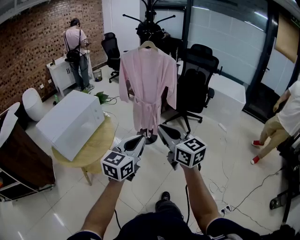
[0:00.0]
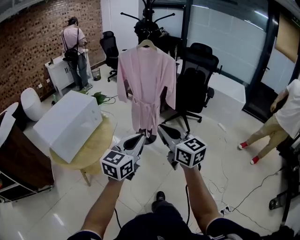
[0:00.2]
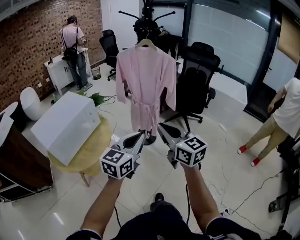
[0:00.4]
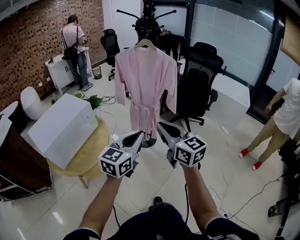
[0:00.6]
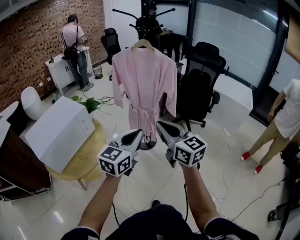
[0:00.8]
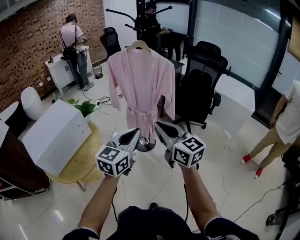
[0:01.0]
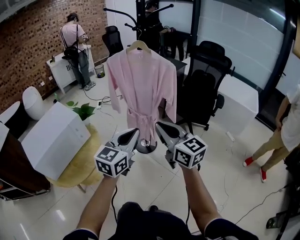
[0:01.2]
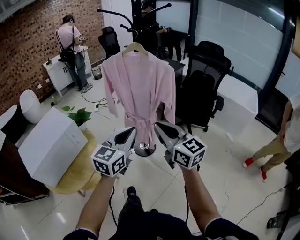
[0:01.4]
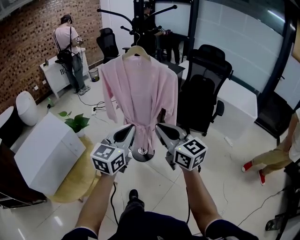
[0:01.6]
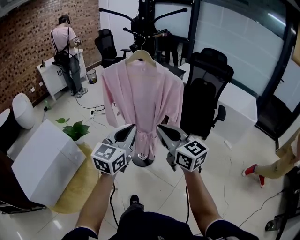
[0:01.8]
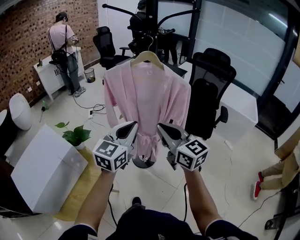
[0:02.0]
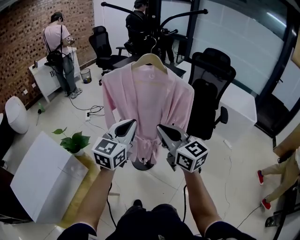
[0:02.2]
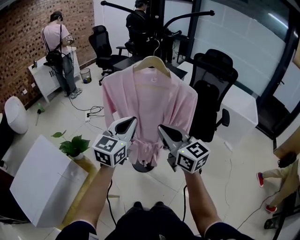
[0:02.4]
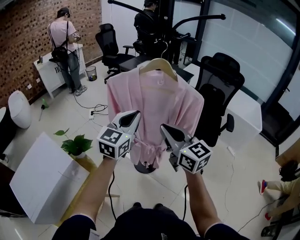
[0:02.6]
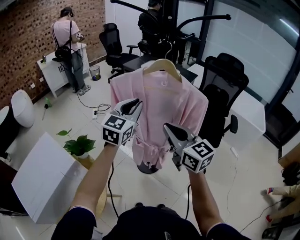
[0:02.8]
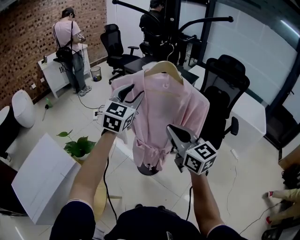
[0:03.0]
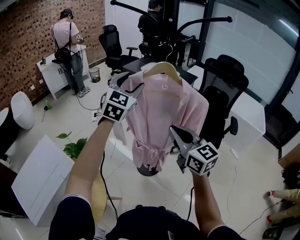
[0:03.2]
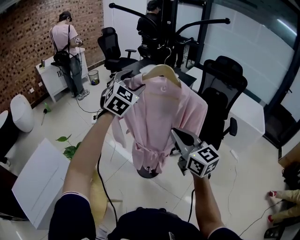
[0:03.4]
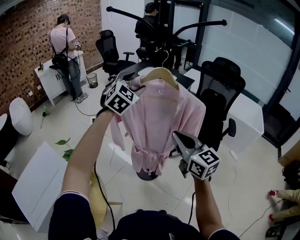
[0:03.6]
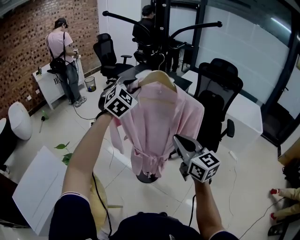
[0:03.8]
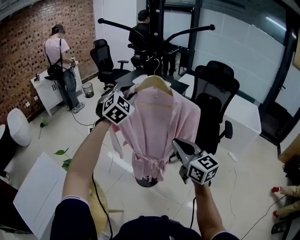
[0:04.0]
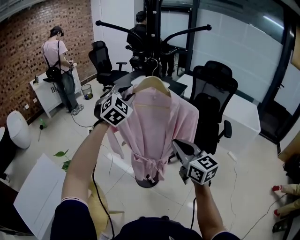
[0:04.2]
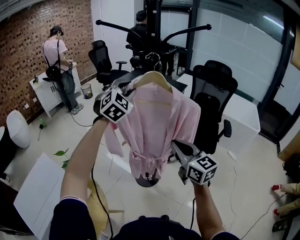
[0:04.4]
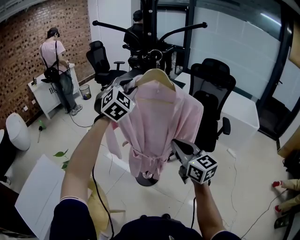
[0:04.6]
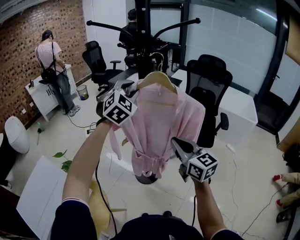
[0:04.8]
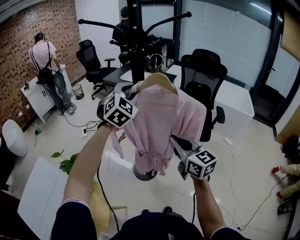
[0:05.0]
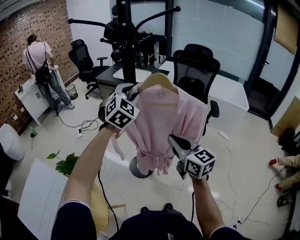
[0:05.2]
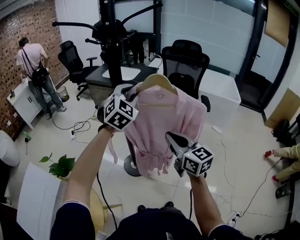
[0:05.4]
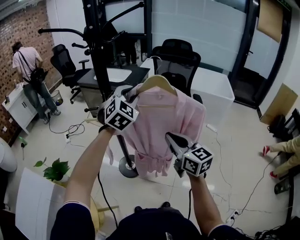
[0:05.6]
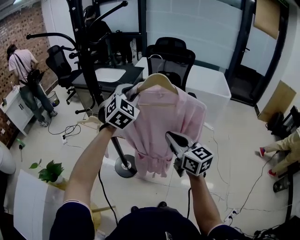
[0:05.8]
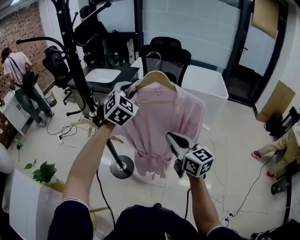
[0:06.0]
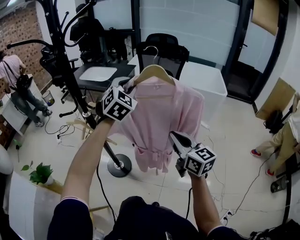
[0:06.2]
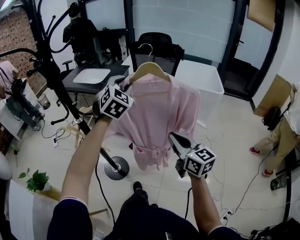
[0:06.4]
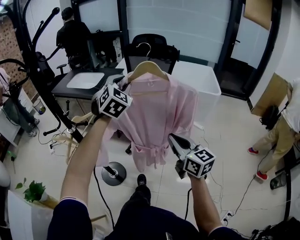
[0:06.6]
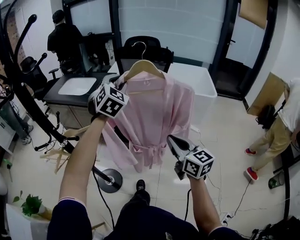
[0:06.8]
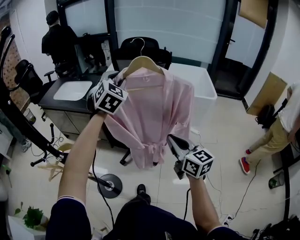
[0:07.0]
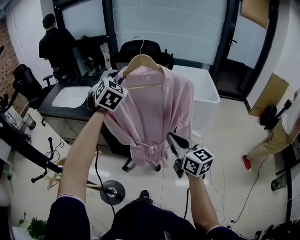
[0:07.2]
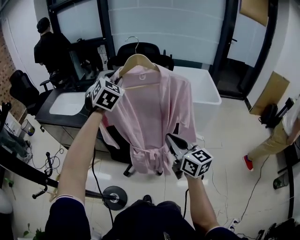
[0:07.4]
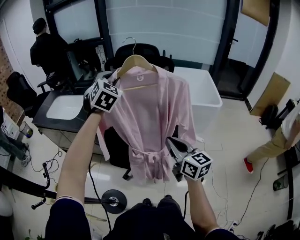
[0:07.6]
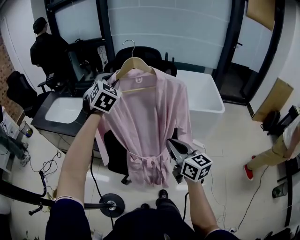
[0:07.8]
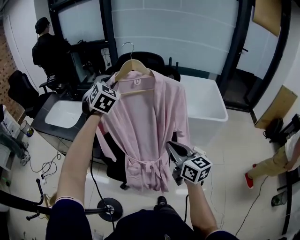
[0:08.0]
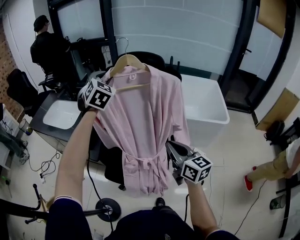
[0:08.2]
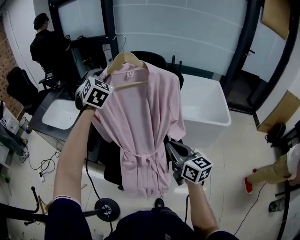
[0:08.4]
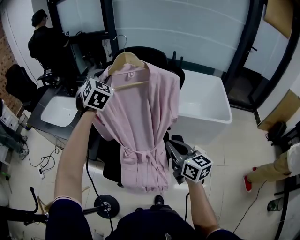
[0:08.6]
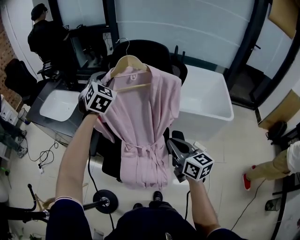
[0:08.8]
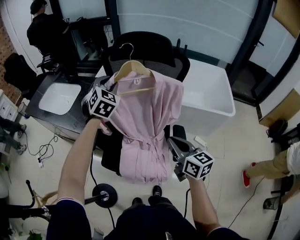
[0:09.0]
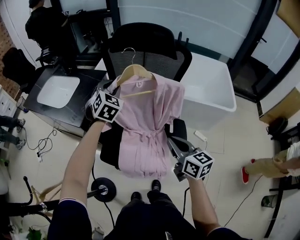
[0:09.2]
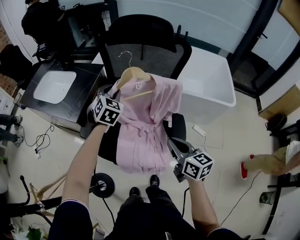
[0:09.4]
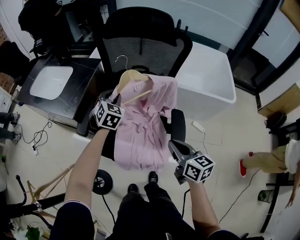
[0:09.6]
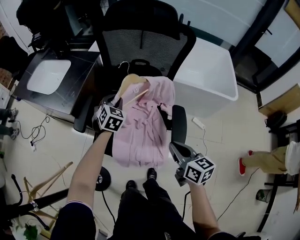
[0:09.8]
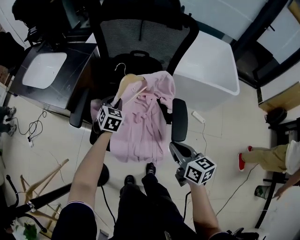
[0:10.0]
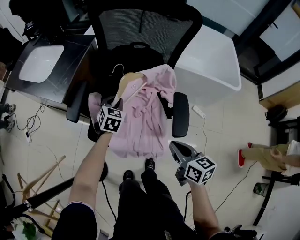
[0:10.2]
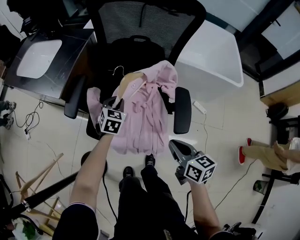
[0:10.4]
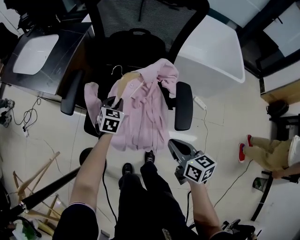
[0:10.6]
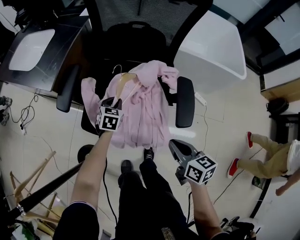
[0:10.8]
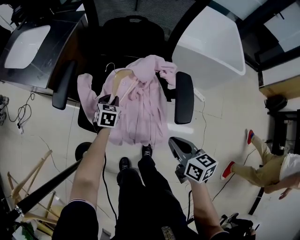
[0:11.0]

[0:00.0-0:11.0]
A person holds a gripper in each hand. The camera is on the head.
0:00.0 to 0:01.6: Both grippers travel together forward, about 30 cm.
0:01.6 to 0:03.2: The left gripper goes some 35 cm forward, rotates approximately 30 degrees, and opens, while the right gripper travels forward by approximately 20 cm.
0:03.2 to 0:04.8: The left gripper moves to the right, some 5 cm, rotates roughly 20 degrees, and closes up, while the right gripper moves roughly 5 cm.
0:04.8 to 0:06.2: Both grippers move to the right, roughly 25 cm.
0:06.2 to 0:07.8: Both grippers are carried forward, approximately 40 cm.
0:07.8 to 0:09.4: The right gripper shifts roughly 15 cm downward, forward and to the right. The left gripper heads downward, covering approximately 20 cm.
0:09.4 to 0:11.0: The left gripper moves downward, roughly 35 cm, and swivels approximately 30 degrees. Meanwhile the right gripper goes roughly 20 cm downward and backward.

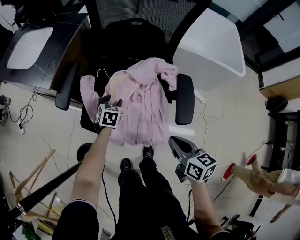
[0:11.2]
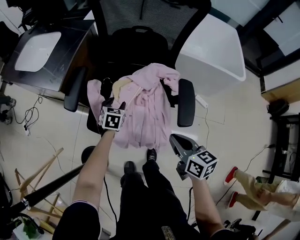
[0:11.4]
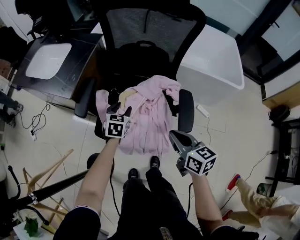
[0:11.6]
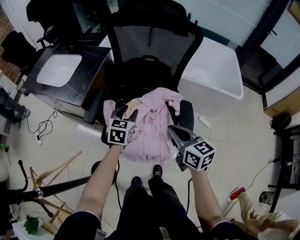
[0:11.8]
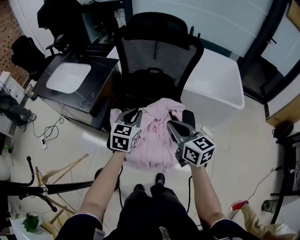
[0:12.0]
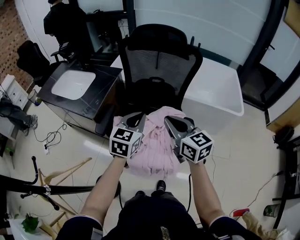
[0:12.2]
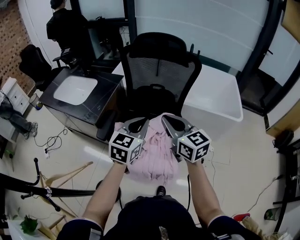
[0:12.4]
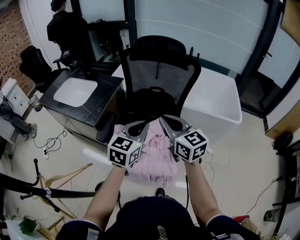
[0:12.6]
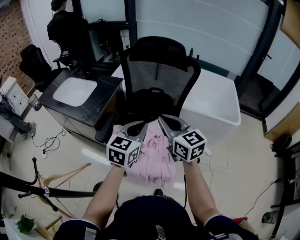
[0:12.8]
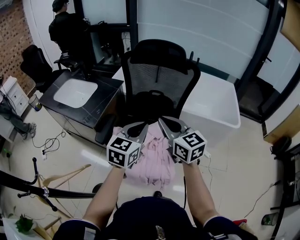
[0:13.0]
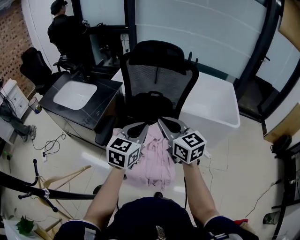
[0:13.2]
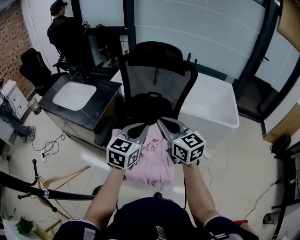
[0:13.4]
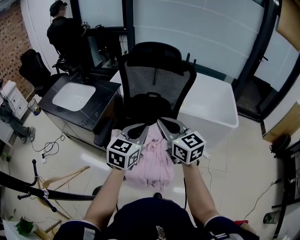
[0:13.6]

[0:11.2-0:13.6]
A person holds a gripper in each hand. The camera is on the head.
0:11.2 to 0:12.4: The left gripper shifts about 40 cm upward, points its fingers about 30 degrees further upward, and closes its fingers. Meanwhile the right gripper heads upward and forward, covering about 30 cm, and swivels some 40 degrees.
0:12.4 to 0:13.6: The grippers stay close to where they were, moving slightly.

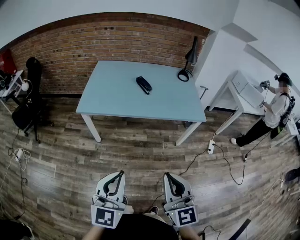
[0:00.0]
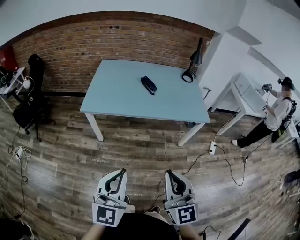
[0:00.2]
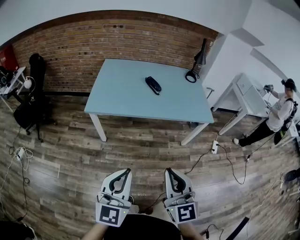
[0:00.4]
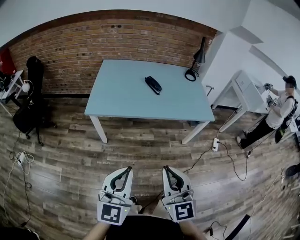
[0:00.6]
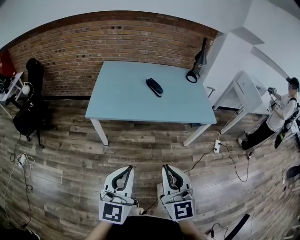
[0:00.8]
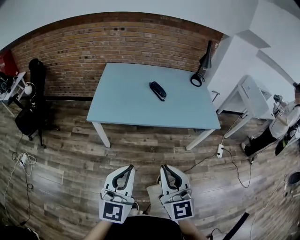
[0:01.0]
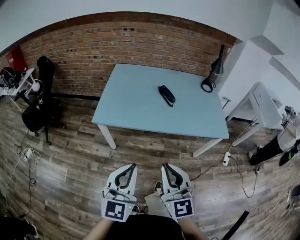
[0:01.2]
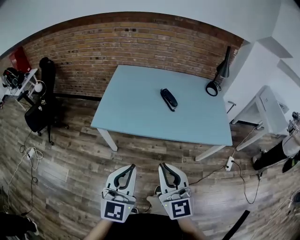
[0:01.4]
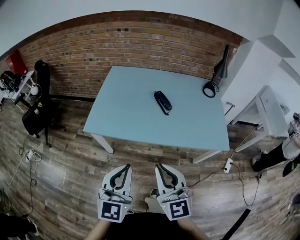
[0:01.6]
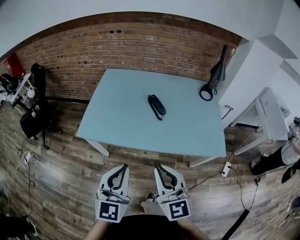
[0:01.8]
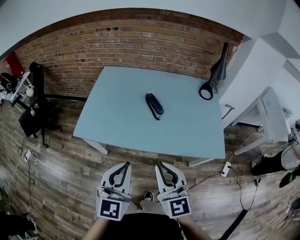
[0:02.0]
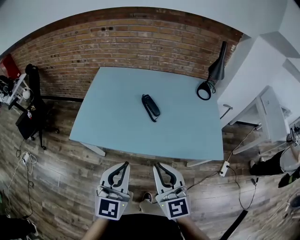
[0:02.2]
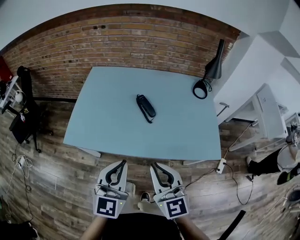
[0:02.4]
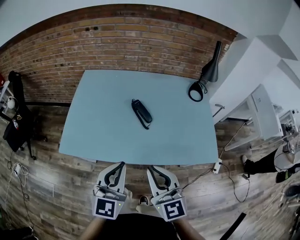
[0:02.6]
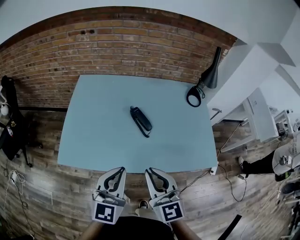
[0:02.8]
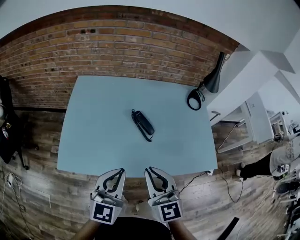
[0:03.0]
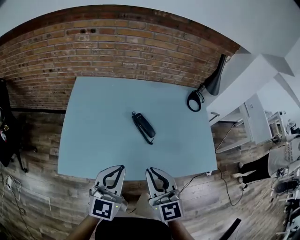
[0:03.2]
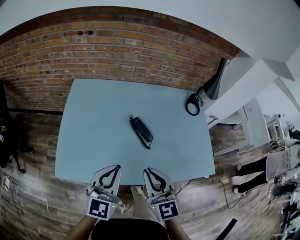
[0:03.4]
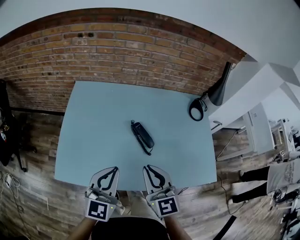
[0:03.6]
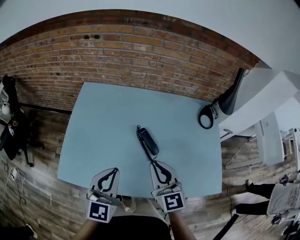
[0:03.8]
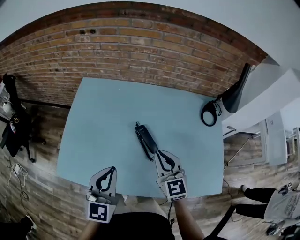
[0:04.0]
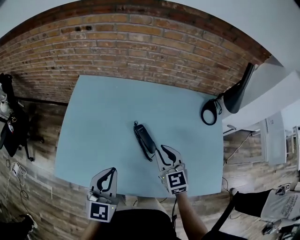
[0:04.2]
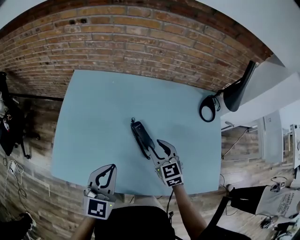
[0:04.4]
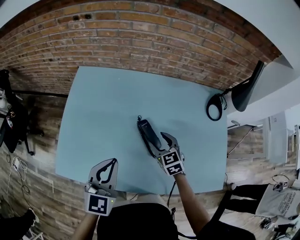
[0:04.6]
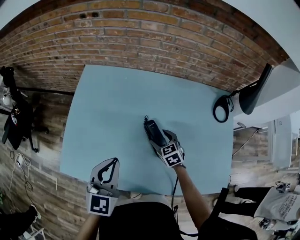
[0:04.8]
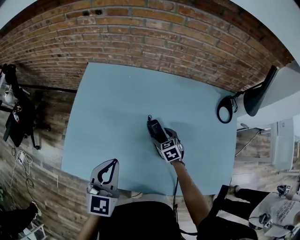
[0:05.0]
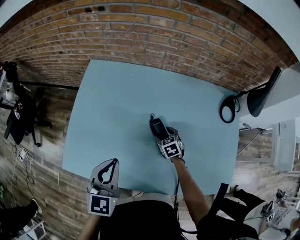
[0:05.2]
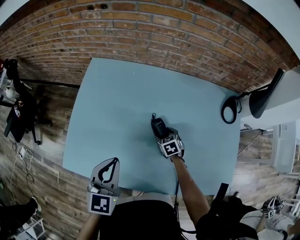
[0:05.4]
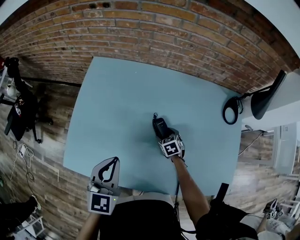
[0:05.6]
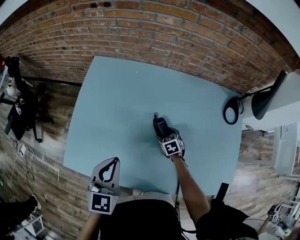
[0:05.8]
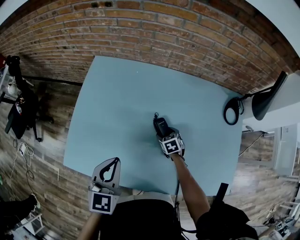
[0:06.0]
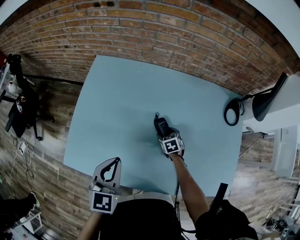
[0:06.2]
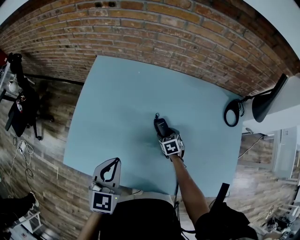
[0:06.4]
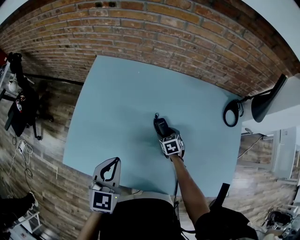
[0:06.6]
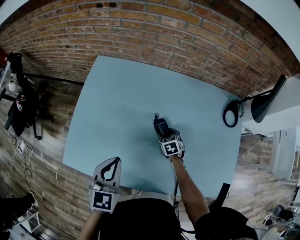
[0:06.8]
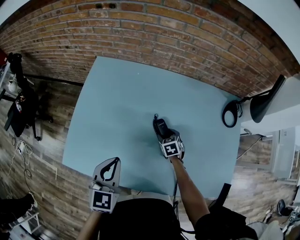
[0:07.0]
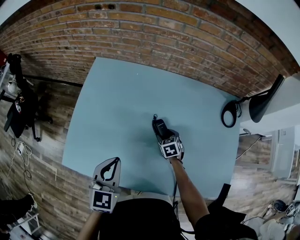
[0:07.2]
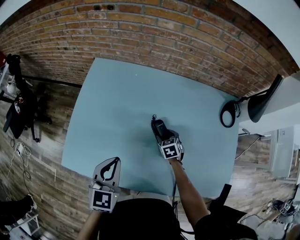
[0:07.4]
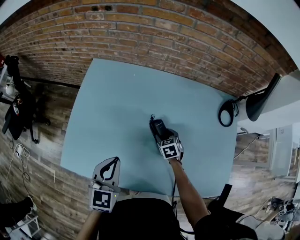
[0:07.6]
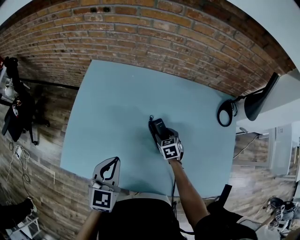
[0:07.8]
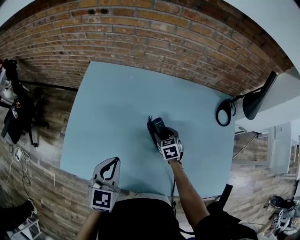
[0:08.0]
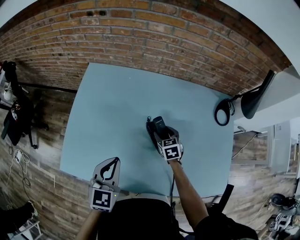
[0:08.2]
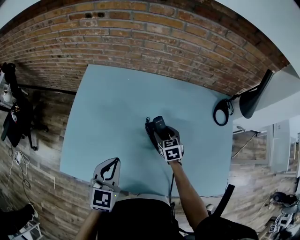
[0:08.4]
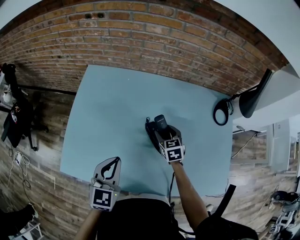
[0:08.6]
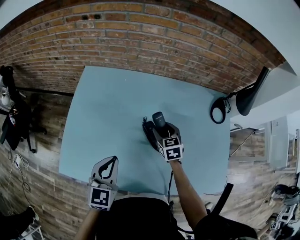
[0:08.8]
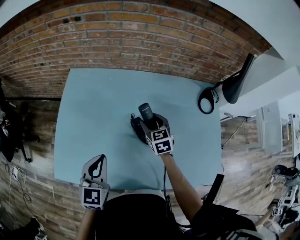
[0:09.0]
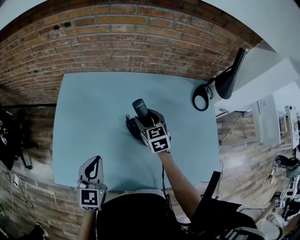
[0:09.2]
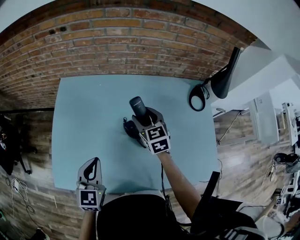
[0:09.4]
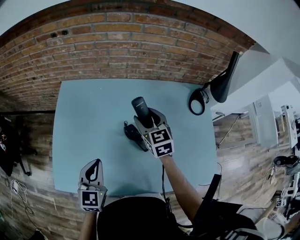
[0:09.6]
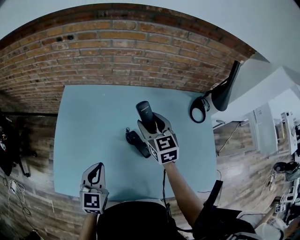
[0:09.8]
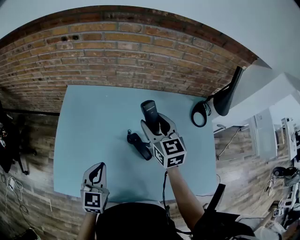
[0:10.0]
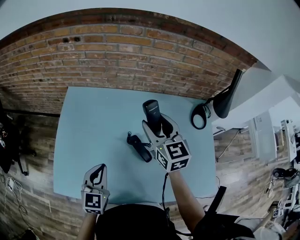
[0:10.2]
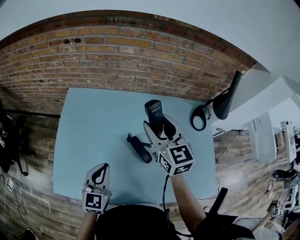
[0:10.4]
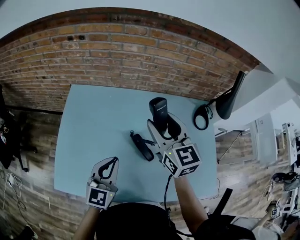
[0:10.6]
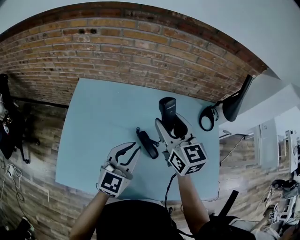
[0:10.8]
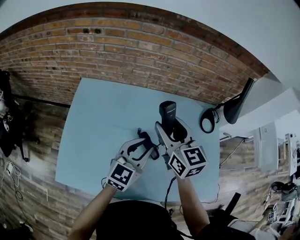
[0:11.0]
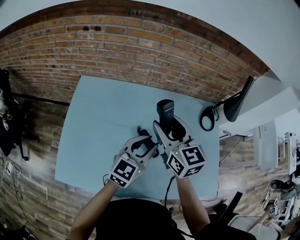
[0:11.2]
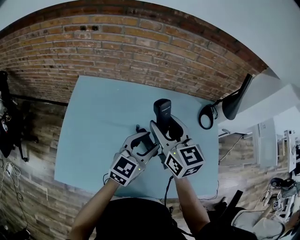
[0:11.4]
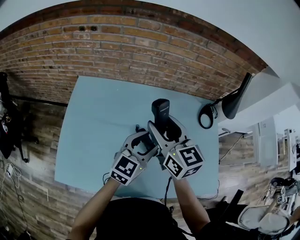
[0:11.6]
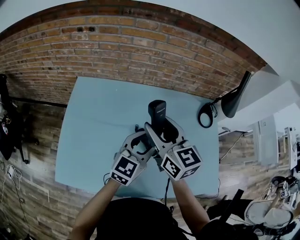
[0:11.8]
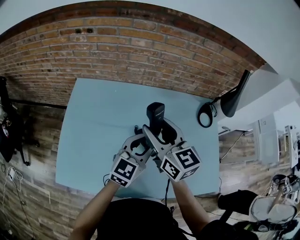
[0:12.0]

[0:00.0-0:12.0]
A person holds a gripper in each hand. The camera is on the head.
0:00.0 to 0:01.6: The two grippers go roughly 30 cm forward.
0:01.6 to 0:03.0: The two grippers go approximately 25 cm forward.
0:03.0 to 0:04.4: The right gripper is displaced forward and downward by roughly 30 cm, rotates about 20 degrees, and opens. The left gripper travels forward by some 15 cm.
0:04.4 to 0:06.0: The left gripper goes about 5 cm to the left, while the right gripper is displaced downward by approximately 25 cm, changes its angle by about 30 degrees, and opens.
0:06.0 to 0:07.6: The right gripper moves upward, about 5 cm.
0:07.6 to 0:09.0: The right gripper goes about 15 cm upward.
0:09.0 to 0:10.4: The right gripper moves upward, approximately 25 cm, and swivels approximately 20 degrees.
0:10.4 to 0:12.0: The left gripper goes about 15 cm to the right and forward, changes its angle by about 20 degrees, and opens up, while the right gripper changes place by some 5 cm.
